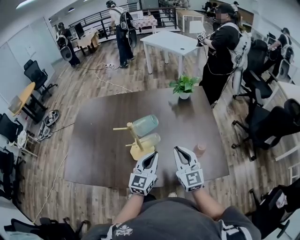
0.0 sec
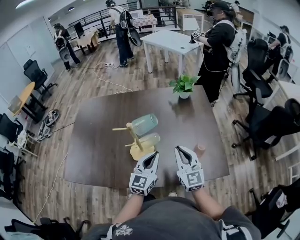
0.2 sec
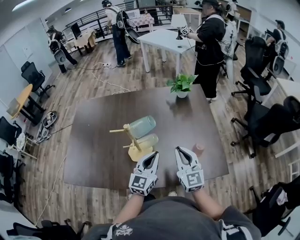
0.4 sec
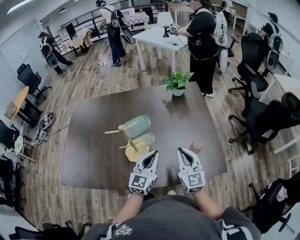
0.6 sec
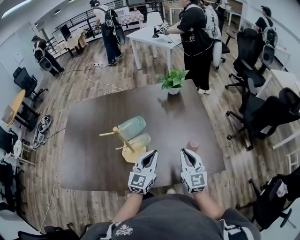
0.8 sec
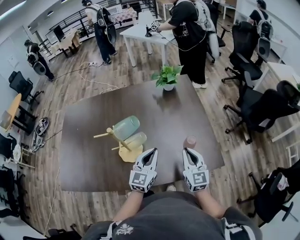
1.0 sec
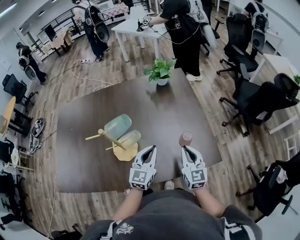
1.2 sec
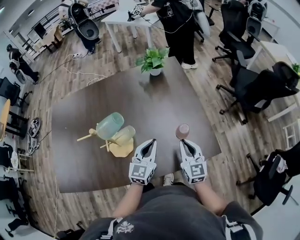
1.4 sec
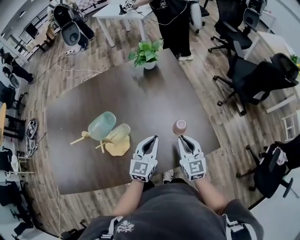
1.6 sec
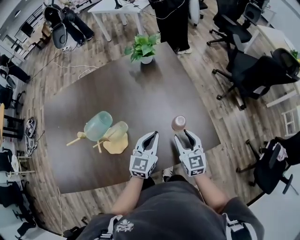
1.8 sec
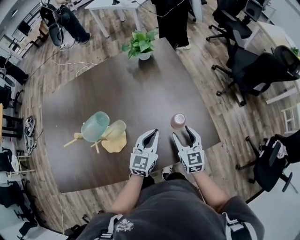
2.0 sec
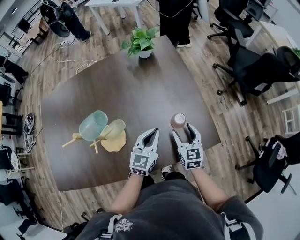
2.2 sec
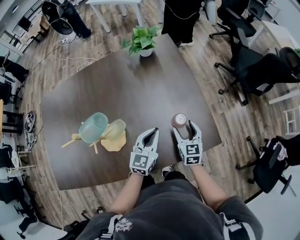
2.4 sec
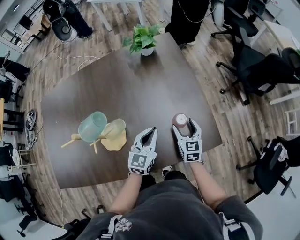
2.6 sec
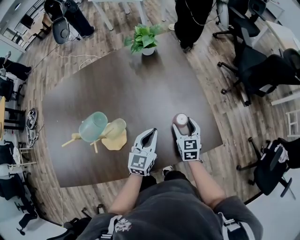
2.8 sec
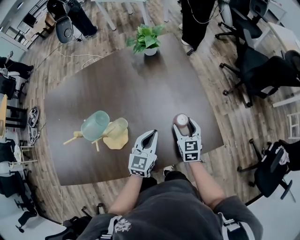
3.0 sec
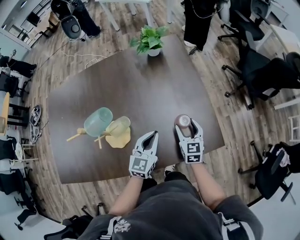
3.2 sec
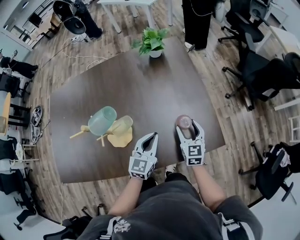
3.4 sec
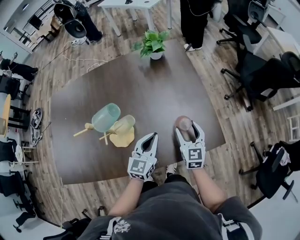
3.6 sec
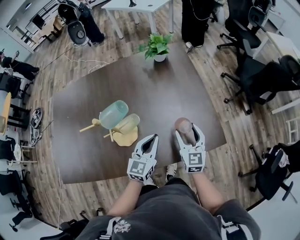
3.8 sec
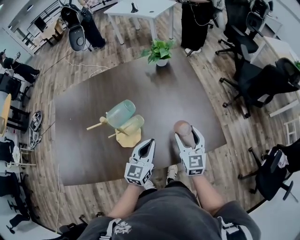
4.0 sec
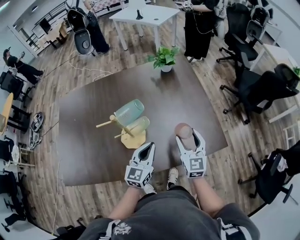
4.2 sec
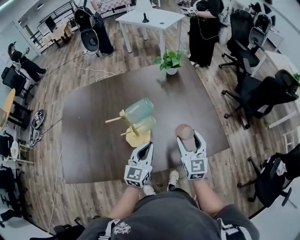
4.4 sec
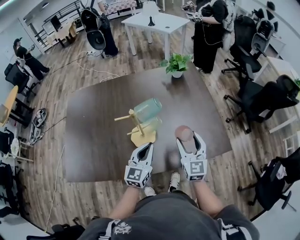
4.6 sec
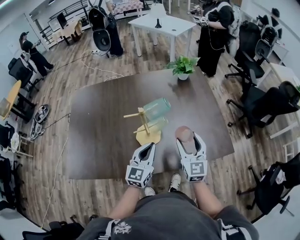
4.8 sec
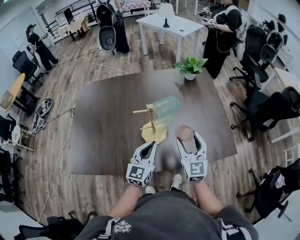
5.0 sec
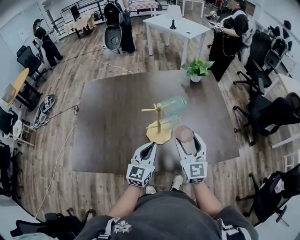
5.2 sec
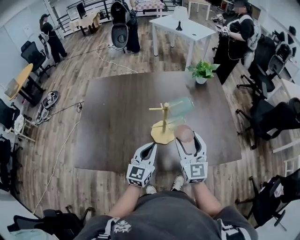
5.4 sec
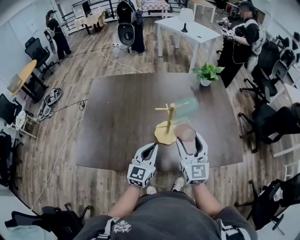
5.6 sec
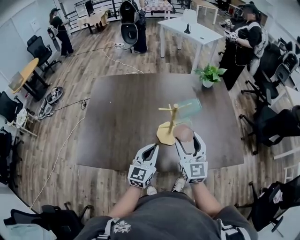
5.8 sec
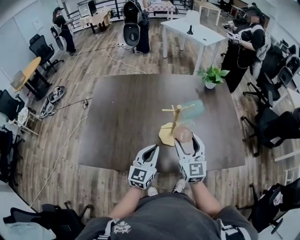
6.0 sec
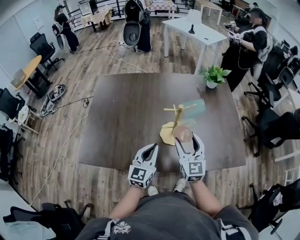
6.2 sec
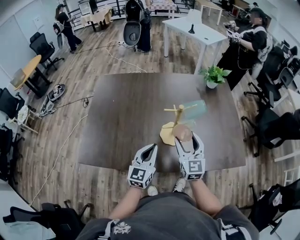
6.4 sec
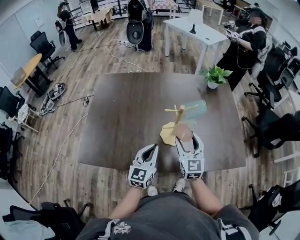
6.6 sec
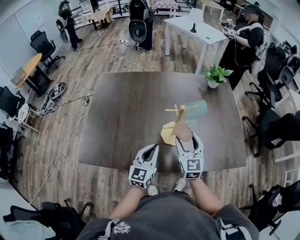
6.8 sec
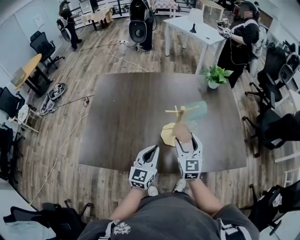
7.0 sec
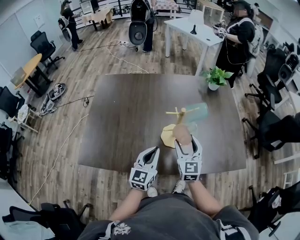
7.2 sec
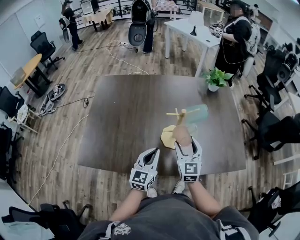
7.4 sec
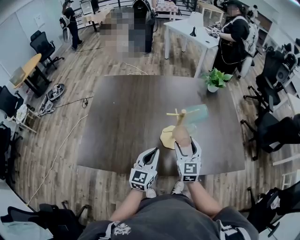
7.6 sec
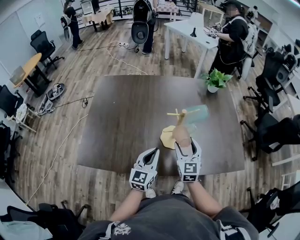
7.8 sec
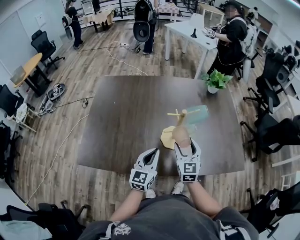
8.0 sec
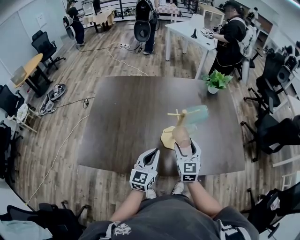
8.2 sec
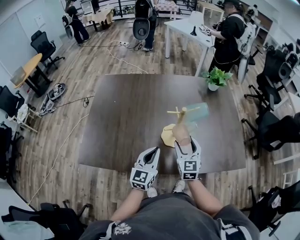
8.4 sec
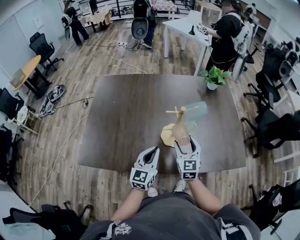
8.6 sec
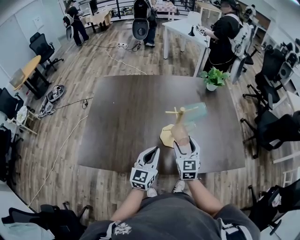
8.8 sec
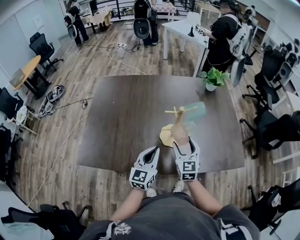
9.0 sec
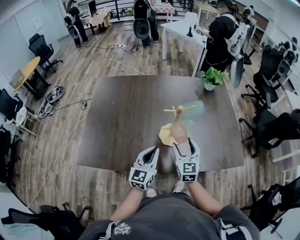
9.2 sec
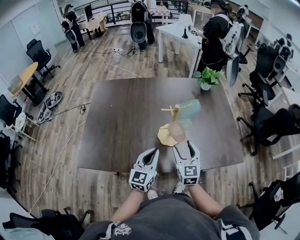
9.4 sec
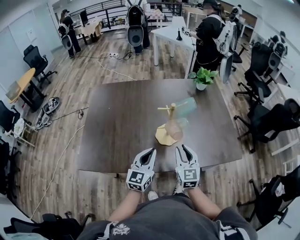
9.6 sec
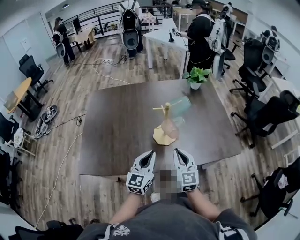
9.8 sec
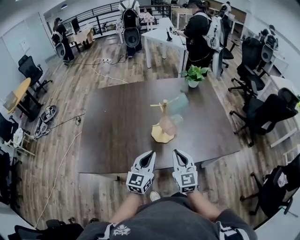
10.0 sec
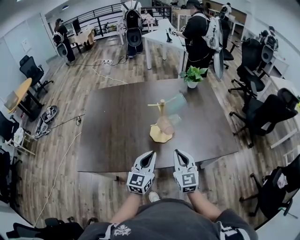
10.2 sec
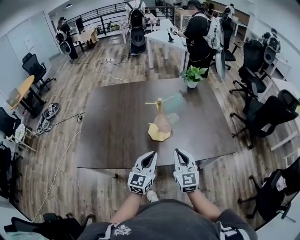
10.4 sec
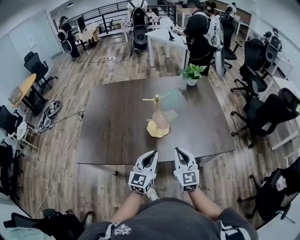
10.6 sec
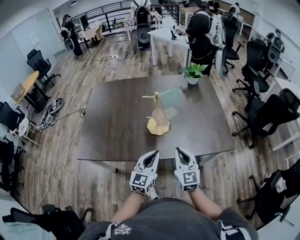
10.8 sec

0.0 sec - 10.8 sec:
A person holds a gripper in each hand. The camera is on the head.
0.0 sec - 1.6 sec: The left gripper is displaced to the right, downward and forward by approximately 15 cm, while the right gripper travels to the right and downward by roughly 20 cm, and rotates about 20 degrees.
1.6 sec - 3.0 sec: The right gripper travels downward and forward by about 10 cm, and opens its fingers.
3.0 sec - 4.6 sec: The left gripper moves to the left, backward and upward, roughly 25 cm. Meanwhile the right gripper moves upward, to the left and backward, roughly 25 cm, and turns by roughly 20 degrees.
4.6 sec - 6.2 sec: The two grippers go roughly 15 cm to the left.
6.2 sec - 7.8 sec: The right gripper heads downward, covering approximately 5 cm.
7.8 sec - 9.2 sec: The grippers move only a little.
9.2 sec - 10.8 sec: The two grippers go about 15 cm backward and to the right. The right gripper closes up.

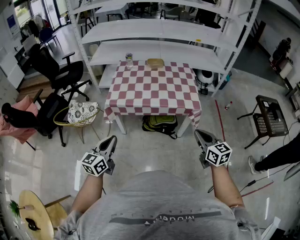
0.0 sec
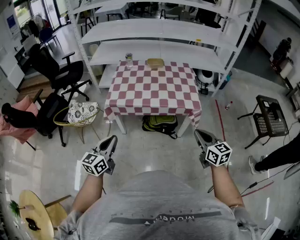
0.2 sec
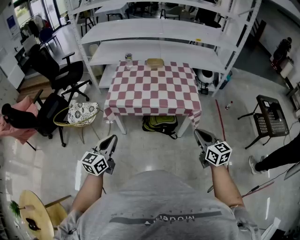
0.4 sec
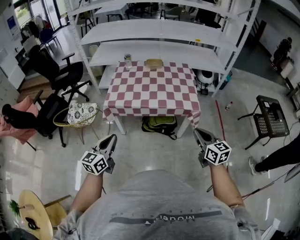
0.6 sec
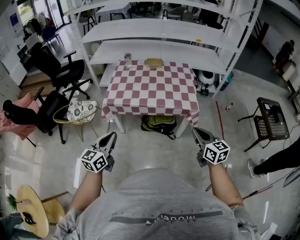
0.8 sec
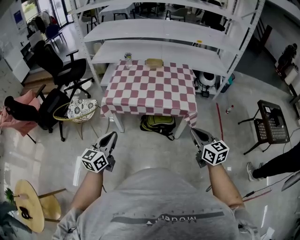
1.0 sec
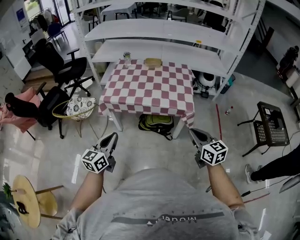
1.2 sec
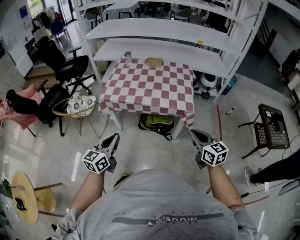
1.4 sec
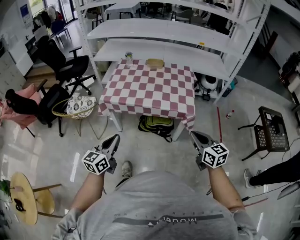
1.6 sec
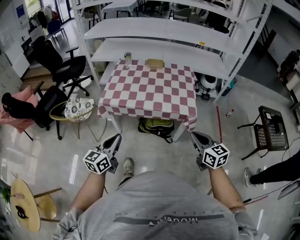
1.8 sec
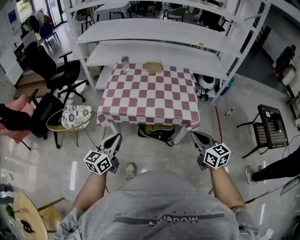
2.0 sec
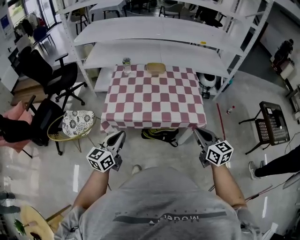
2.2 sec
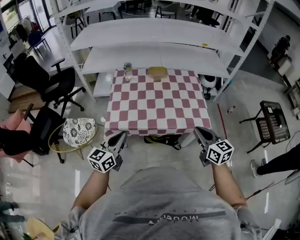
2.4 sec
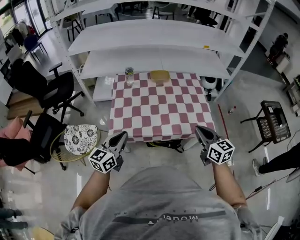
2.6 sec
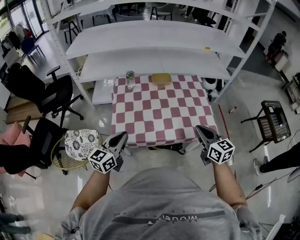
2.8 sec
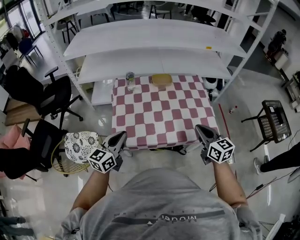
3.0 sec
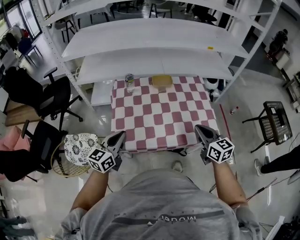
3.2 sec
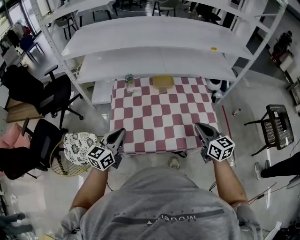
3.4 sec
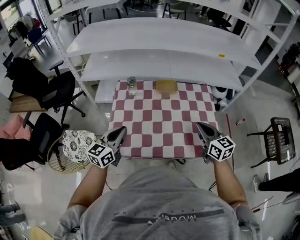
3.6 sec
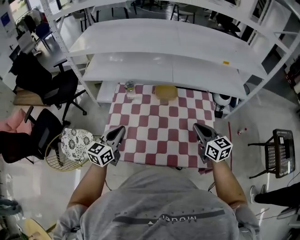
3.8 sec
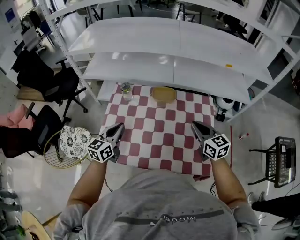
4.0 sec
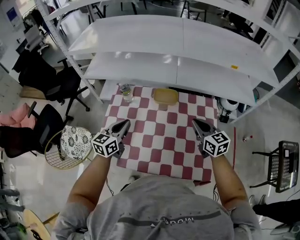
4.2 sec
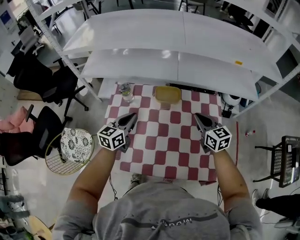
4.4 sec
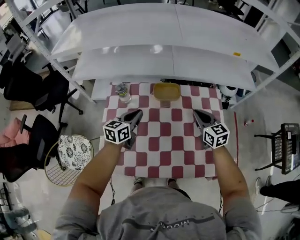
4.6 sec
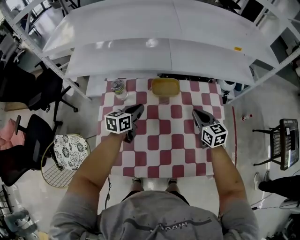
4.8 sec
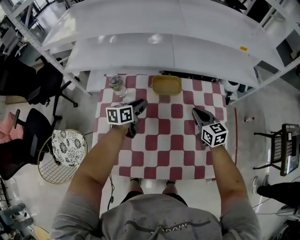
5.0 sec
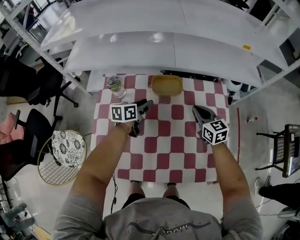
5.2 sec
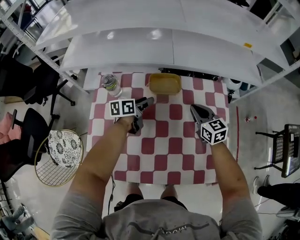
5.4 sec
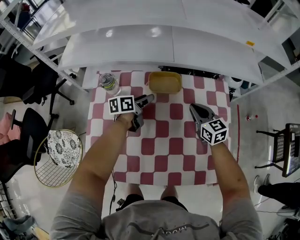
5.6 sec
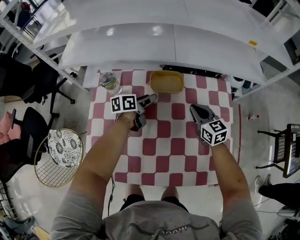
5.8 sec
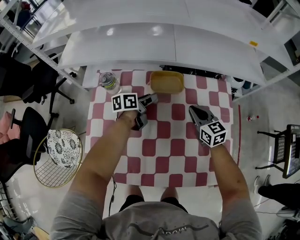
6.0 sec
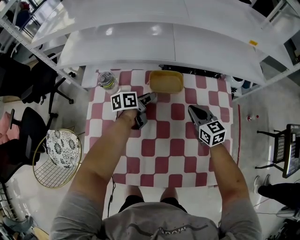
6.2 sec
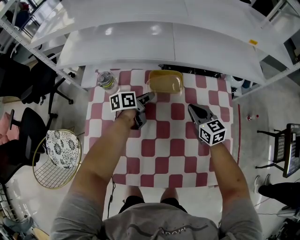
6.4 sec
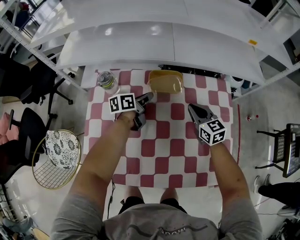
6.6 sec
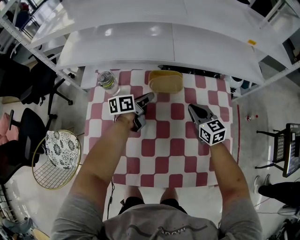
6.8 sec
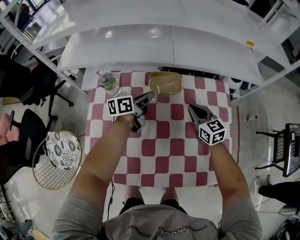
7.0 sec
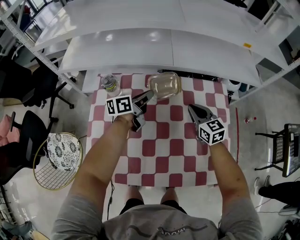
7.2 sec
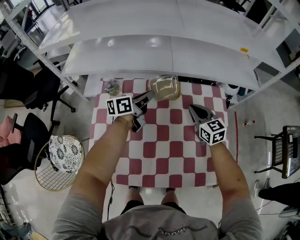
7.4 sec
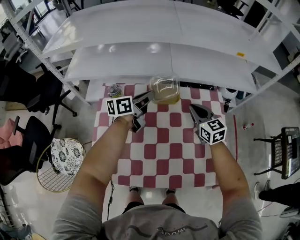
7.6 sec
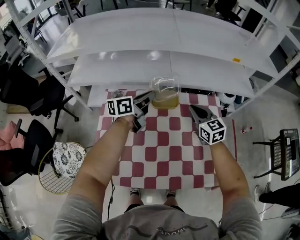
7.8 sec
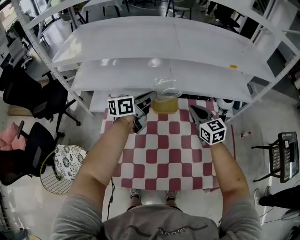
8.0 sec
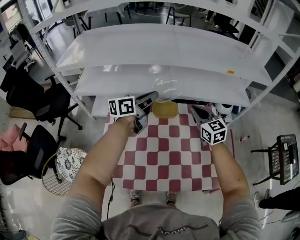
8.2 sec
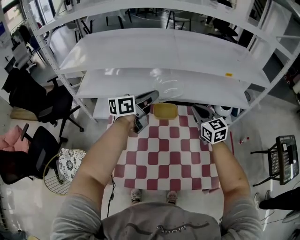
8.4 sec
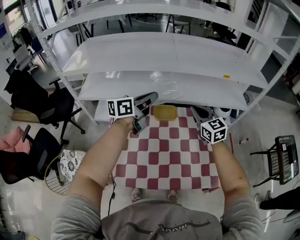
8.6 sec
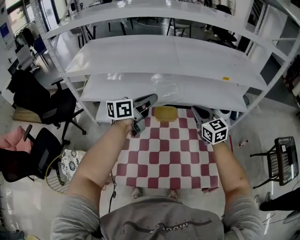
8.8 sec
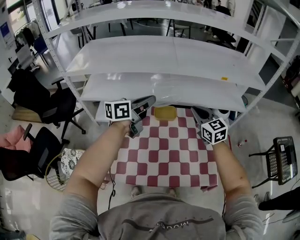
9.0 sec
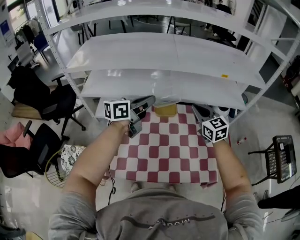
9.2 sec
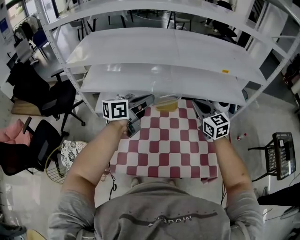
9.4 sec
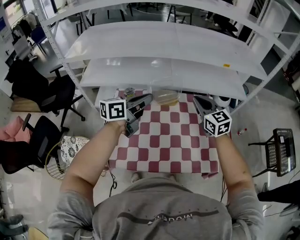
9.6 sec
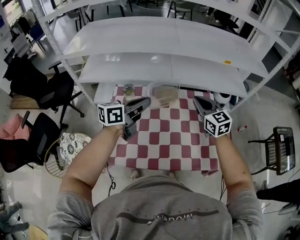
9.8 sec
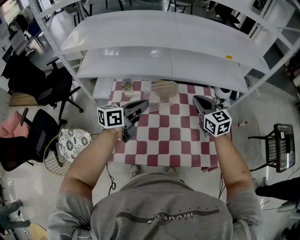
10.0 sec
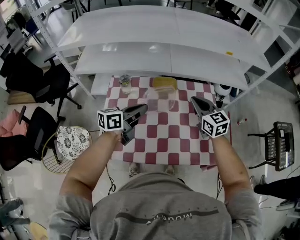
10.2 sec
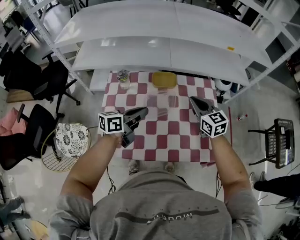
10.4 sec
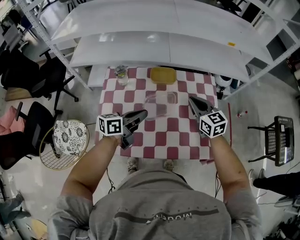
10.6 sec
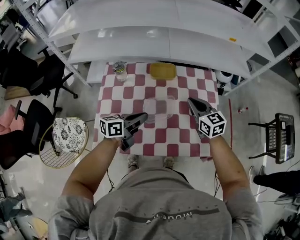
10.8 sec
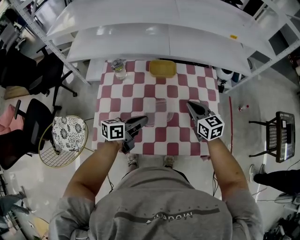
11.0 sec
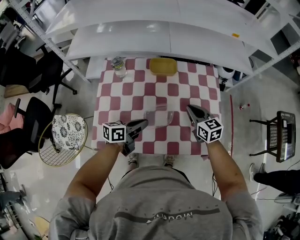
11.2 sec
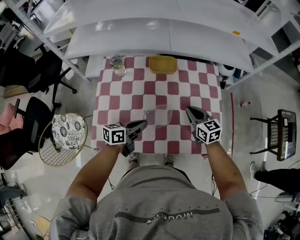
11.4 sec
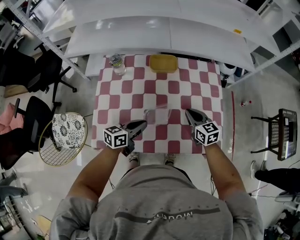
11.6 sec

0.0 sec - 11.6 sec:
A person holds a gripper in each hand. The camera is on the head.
0.0 sec - 1.4 sec: The right gripper moves to the right, roughly 5 cm; the left gripper heads to the right, covering about 10 cm.
1.4 sec - 2.8 sec: The grippers both shift forward and to the left by about 35 cm.
2.8 sec - 4.4 sec: Both grippers travel together forward, approximately 35 cm.
4.4 sec - 5.8 sec: The right gripper travels downward and forward by some 15 cm, while the left gripper is displaced downward and forward by approximately 25 cm, swivels roughly 40 degrees, and opens its fingers.
5.8 sec - 7.2 sec: The left gripper travels upward by roughly 5 cm, and closes up.
7.2 sec - 8.8 sec: Both grippers travel together upward, about 25 cm. The left gripper swivels about 20 degrees.
8.8 sec - 10.2 sec: The left gripper goes approximately 20 cm downward and backward, while the right gripper moves downward and backward, about 10 cm.
10.2 sec - 11.6 sec: The left gripper moves downward and backward, some 20 cm. Meanwhile the right gripper shifts approximately 20 cm downward.

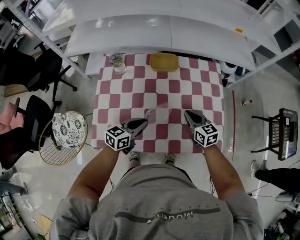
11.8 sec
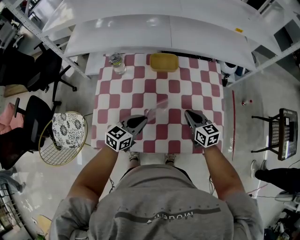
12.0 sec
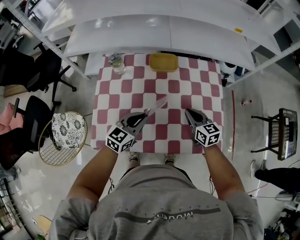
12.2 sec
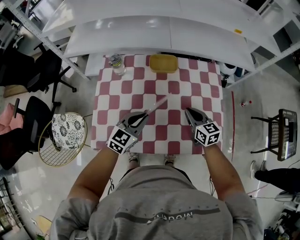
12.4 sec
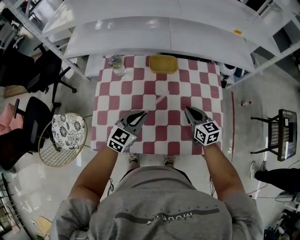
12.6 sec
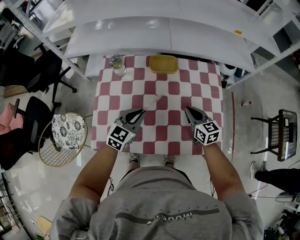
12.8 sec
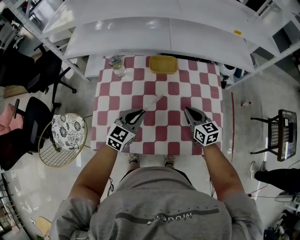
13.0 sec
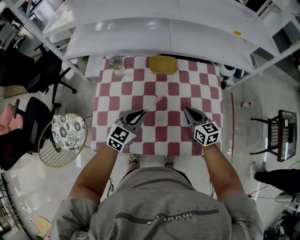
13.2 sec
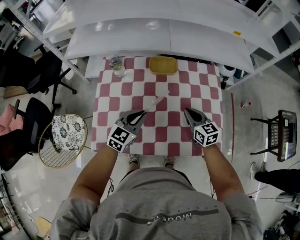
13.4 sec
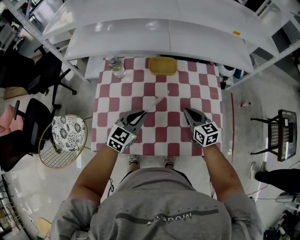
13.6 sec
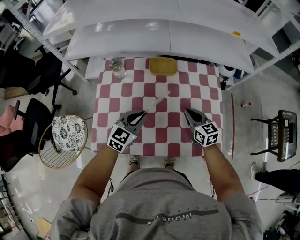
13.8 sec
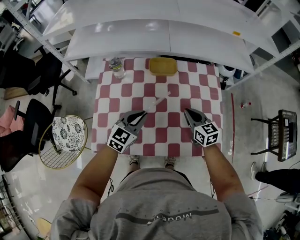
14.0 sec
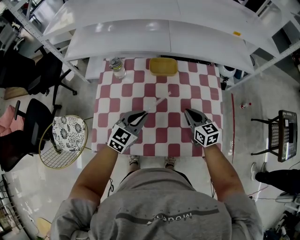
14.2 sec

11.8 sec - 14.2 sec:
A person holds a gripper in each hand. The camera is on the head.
11.8 sec - 13.0 sec: The left gripper shifts by roughly 5 cm, and swivels some 30 degrees.
13.0 sec - 14.2 sec: The two grippers keep their place.
